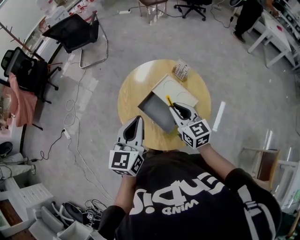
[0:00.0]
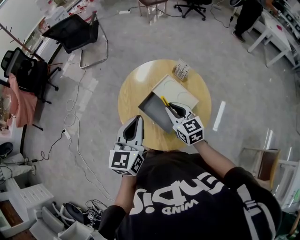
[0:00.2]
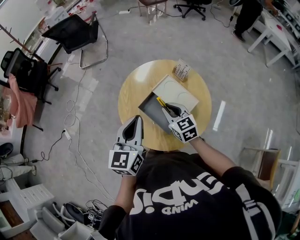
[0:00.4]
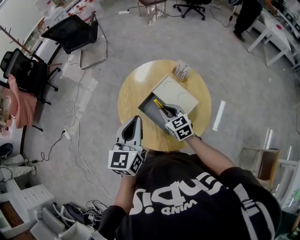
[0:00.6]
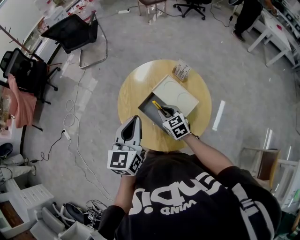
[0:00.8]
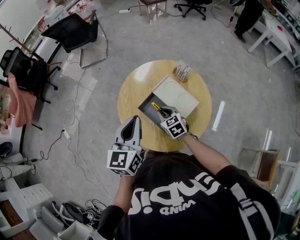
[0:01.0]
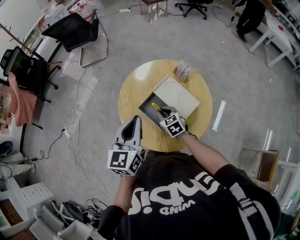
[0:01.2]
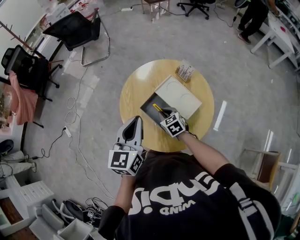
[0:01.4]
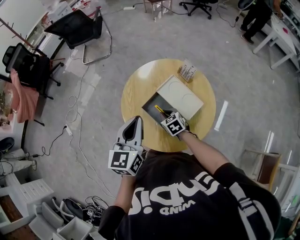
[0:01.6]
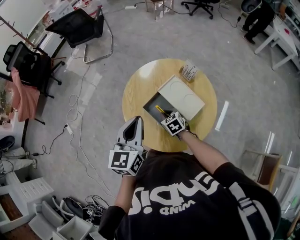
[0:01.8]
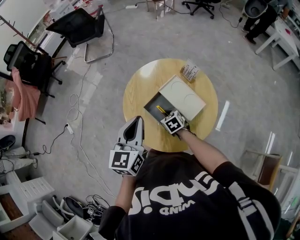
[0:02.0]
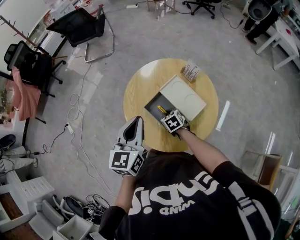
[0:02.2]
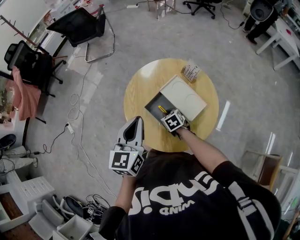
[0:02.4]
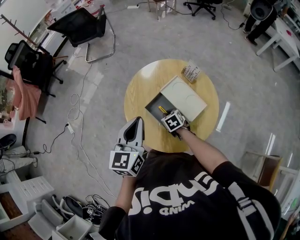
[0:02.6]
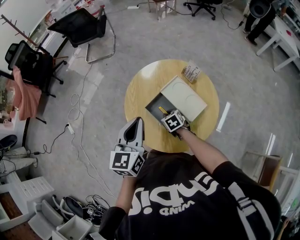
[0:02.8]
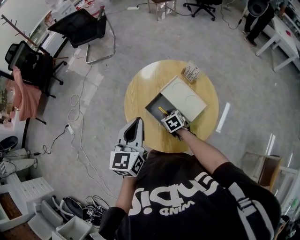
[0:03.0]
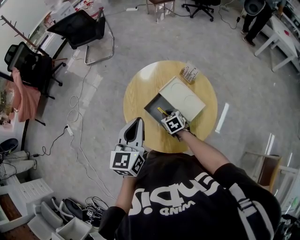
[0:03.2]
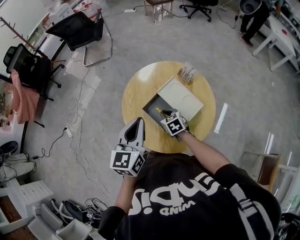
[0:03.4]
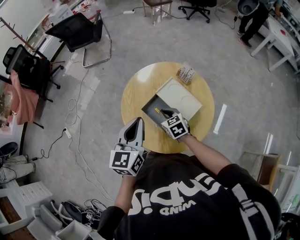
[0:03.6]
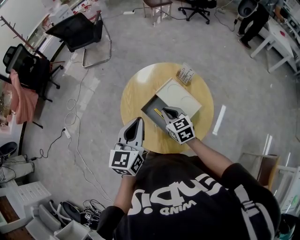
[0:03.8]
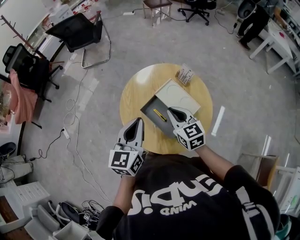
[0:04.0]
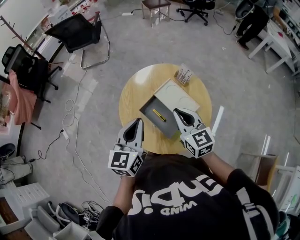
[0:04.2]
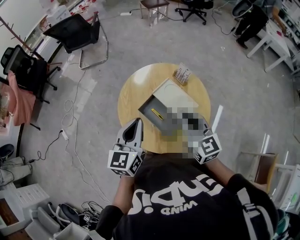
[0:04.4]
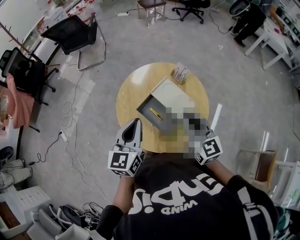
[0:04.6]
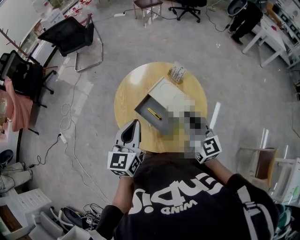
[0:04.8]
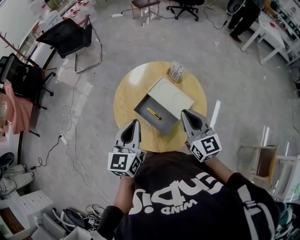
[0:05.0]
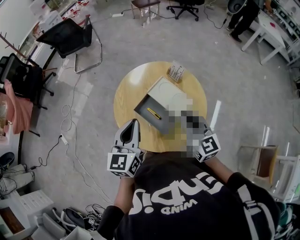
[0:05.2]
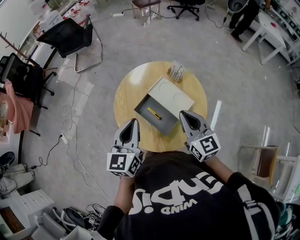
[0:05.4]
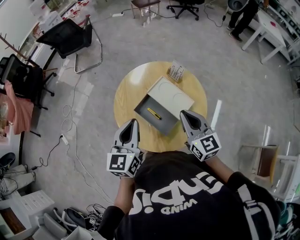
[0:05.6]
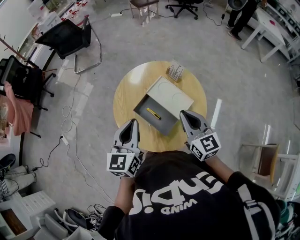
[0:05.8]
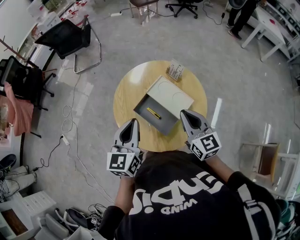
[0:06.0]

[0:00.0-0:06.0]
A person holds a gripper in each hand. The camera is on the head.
0.0 to 1.6 s: The right gripper heads downward, covering approximately 20 cm, and angles its fingers downward, by about 30 degrees.
1.6 to 3.0 s: The grippers move only a little.
3.0 to 4.4 s: The right gripper is displaced upward by about 30 cm, and points its fingers some 50 degrees further upward.
4.4 to 6.0 s: The grippers move only a little.

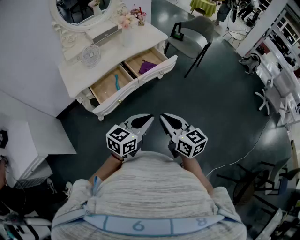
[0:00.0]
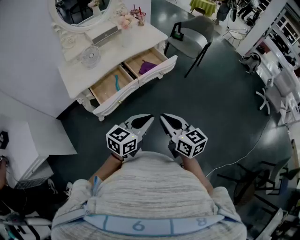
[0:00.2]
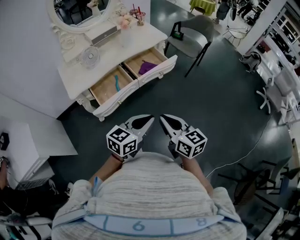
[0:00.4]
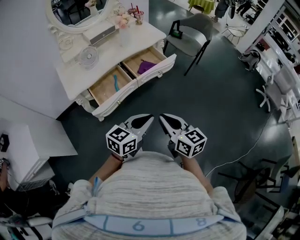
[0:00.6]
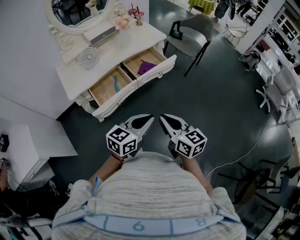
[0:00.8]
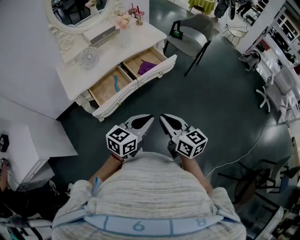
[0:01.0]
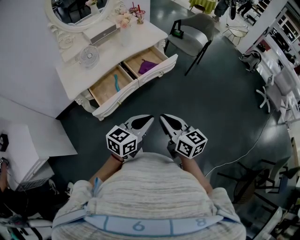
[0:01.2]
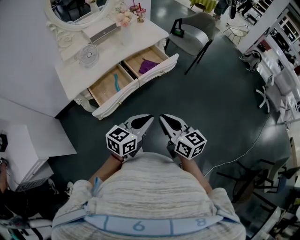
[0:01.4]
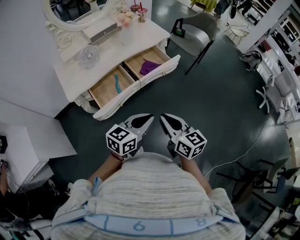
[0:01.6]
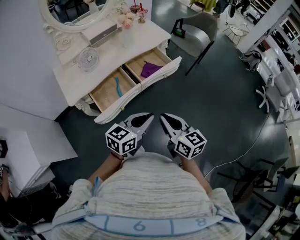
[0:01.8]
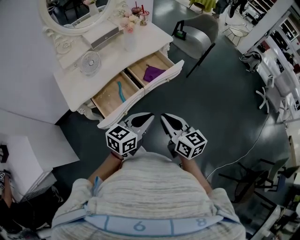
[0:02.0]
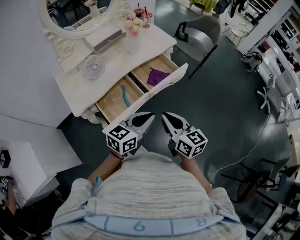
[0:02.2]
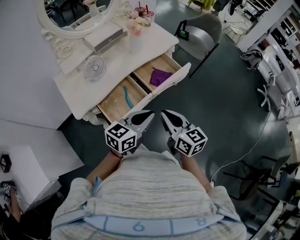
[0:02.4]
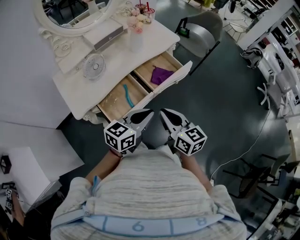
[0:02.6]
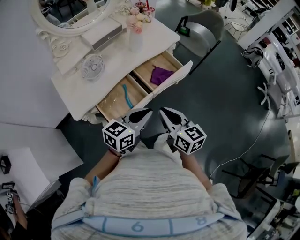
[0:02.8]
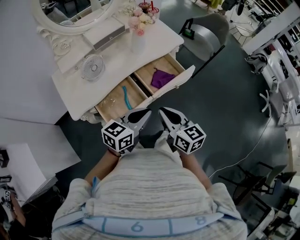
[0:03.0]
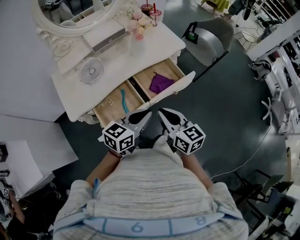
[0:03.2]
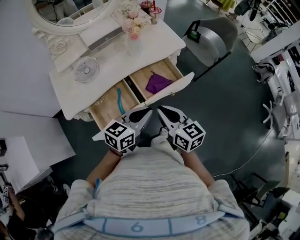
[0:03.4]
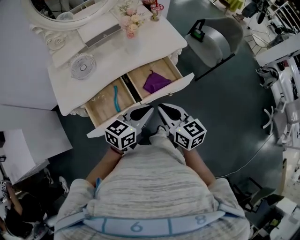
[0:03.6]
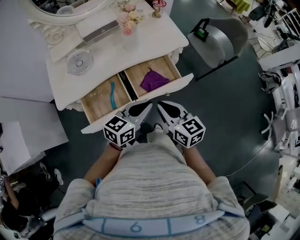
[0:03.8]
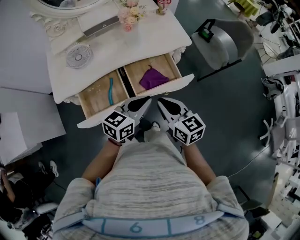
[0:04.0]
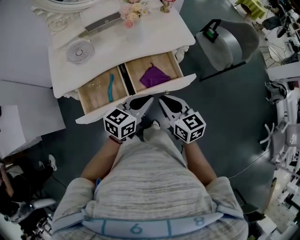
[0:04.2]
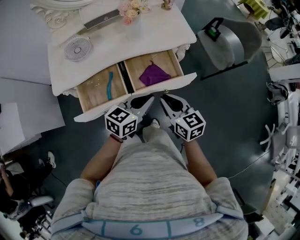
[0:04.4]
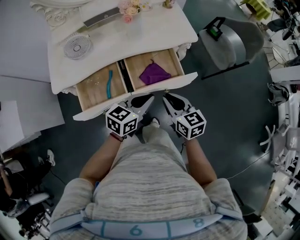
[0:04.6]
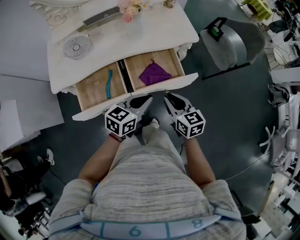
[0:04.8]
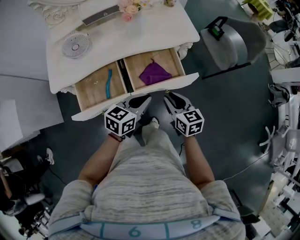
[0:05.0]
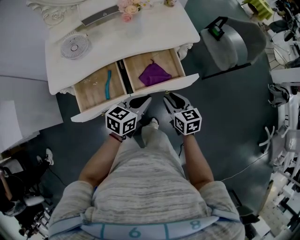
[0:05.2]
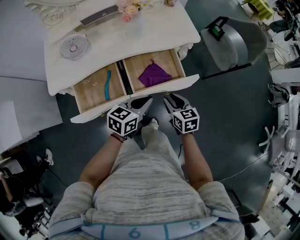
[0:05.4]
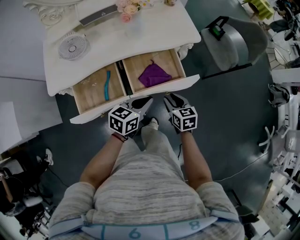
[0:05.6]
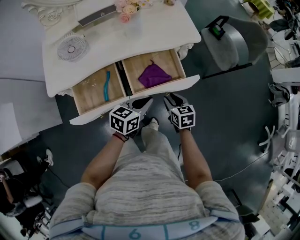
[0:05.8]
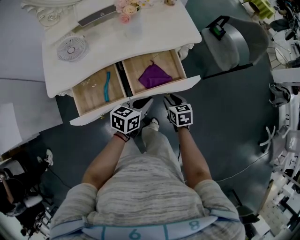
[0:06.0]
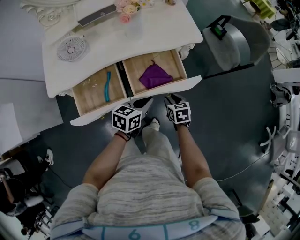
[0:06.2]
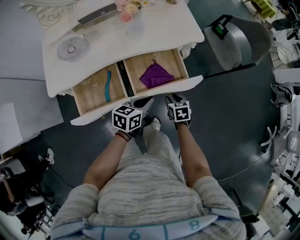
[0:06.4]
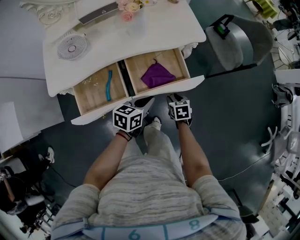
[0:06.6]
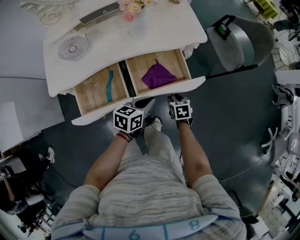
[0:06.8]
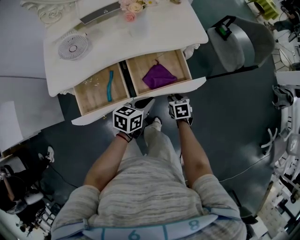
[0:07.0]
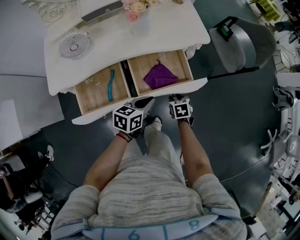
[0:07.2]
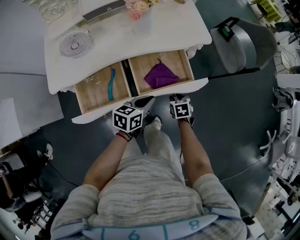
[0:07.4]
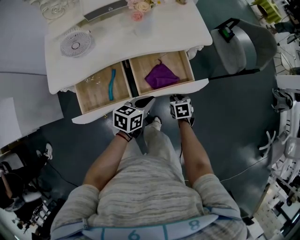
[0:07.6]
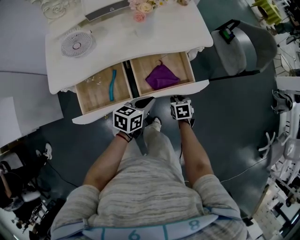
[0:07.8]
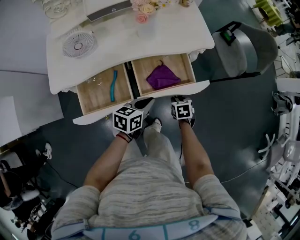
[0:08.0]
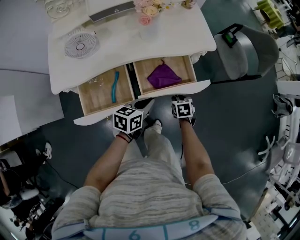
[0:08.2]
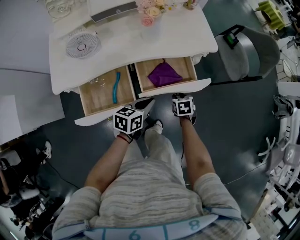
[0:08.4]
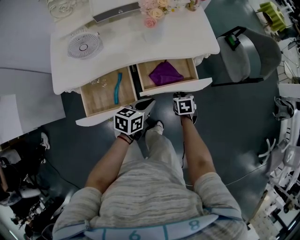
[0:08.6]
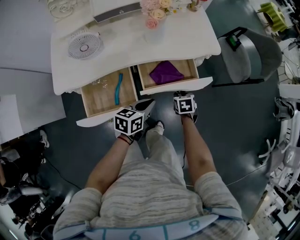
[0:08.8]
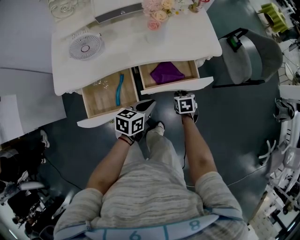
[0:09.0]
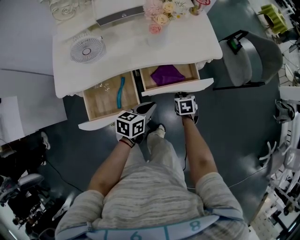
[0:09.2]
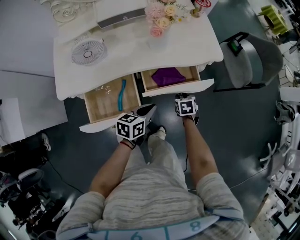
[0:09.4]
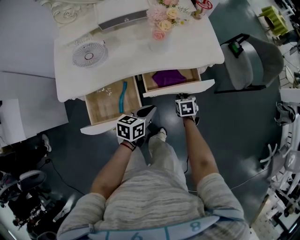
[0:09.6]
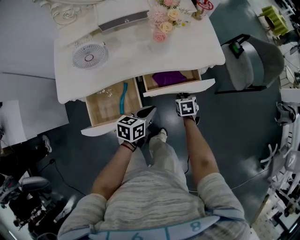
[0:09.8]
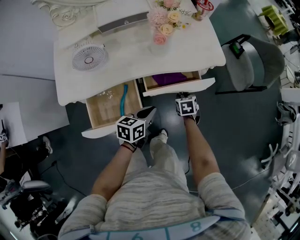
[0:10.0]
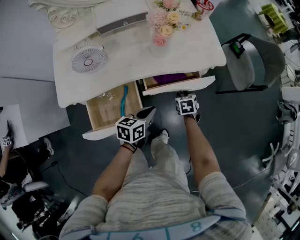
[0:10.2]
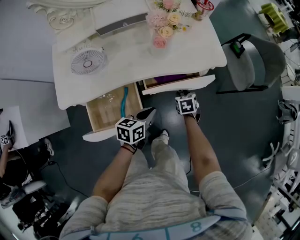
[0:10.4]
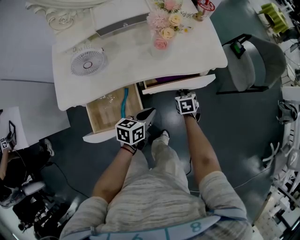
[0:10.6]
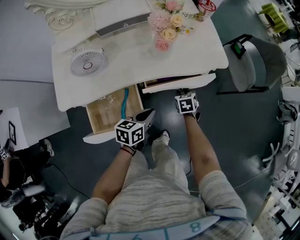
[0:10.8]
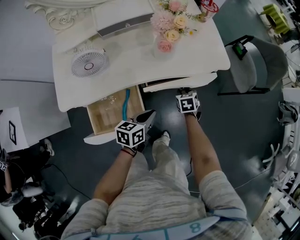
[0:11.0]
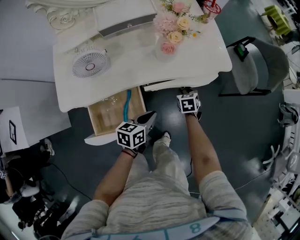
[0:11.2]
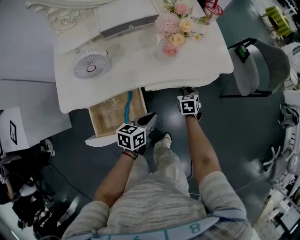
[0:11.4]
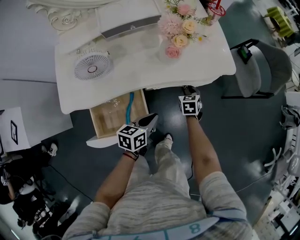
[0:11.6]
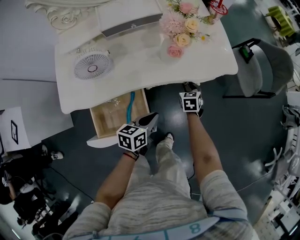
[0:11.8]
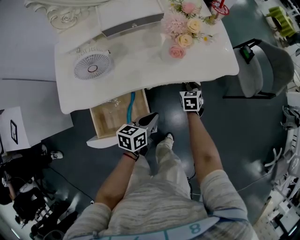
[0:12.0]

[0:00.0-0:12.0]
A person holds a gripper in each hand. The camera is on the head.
0.0 to 1.6 s: The two grippers go about 5 cm forward.
1.6 to 3.0 s: The grippers both shift forward and to the left by some 20 cm.
3.0 to 4.4 s: Both grippers travel together to the right, forward and downward, some 20 cm. The right gripper turns by some 20 degrees.
4.4 to 6.0 s: The right gripper goes roughly 20 cm downward, changes its angle by roughly 20 degrees, and opens its fingers. Meanwhile the left gripper goes about 10 cm downward.
6.0 to 7.6 s: The right gripper moves downward, about 5 cm.
7.6 to 9.0 s: The right gripper goes about 5 cm forward.
9.0 to 10.4 s: The right gripper is displaced forward by about 5 cm.
10.4 to 12.0 s: The right gripper travels forward and to the left by some 10 cm.

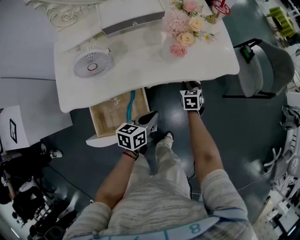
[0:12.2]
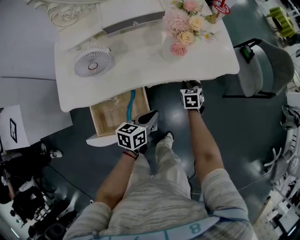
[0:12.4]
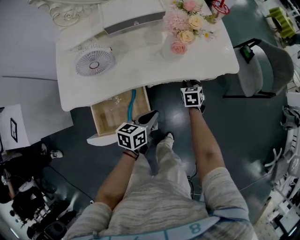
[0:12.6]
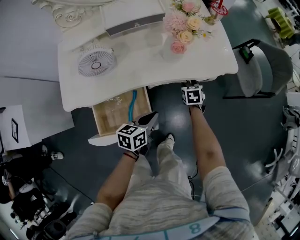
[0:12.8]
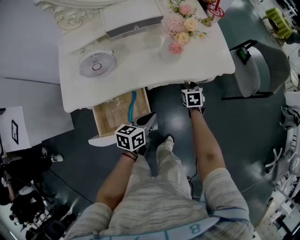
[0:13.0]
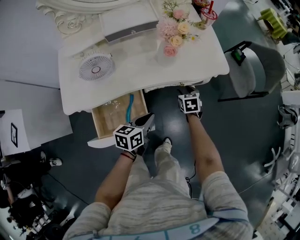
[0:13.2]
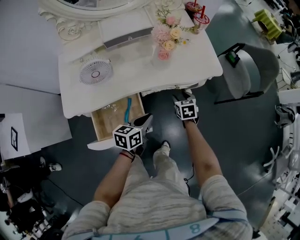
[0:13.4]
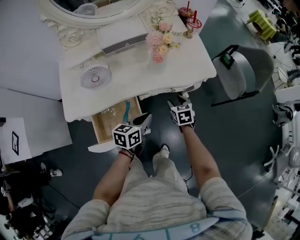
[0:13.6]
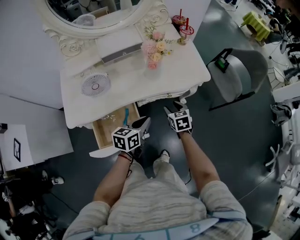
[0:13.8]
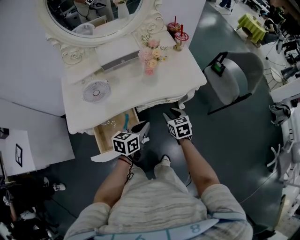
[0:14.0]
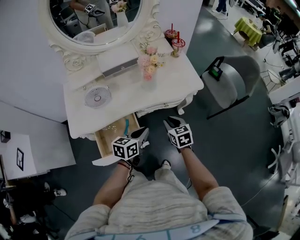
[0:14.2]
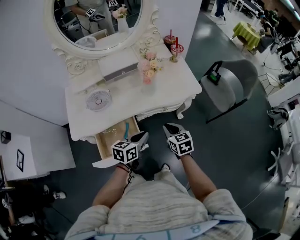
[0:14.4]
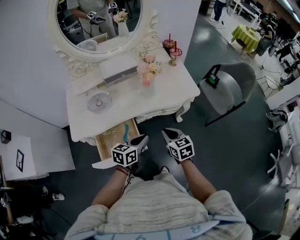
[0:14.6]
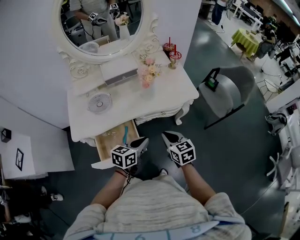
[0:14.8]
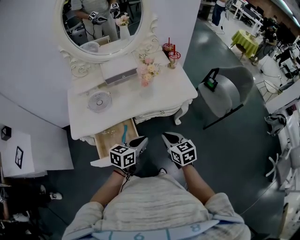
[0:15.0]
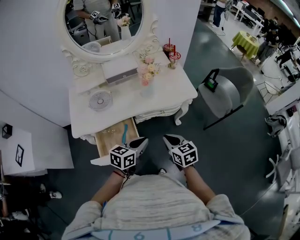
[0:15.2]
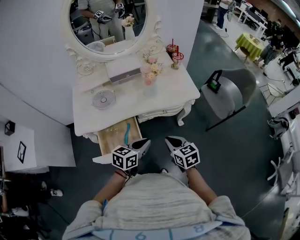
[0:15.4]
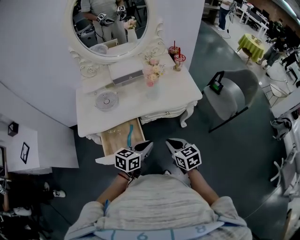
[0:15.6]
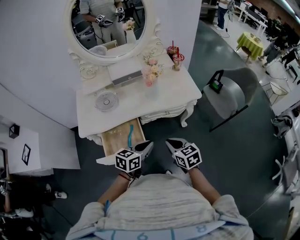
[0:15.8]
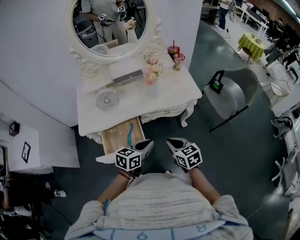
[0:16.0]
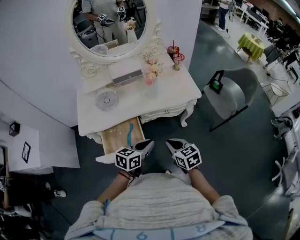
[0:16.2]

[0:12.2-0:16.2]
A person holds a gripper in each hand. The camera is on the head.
12.2 to 13.6 s: The left gripper goes about 5 cm upward; the right gripper travels upward and backward by approximately 10 cm.
13.6 to 14.8 s: The right gripper is displaced upward and backward by some 20 cm, and closes. The left gripper shifts some 10 cm upward and backward.
14.8 to 16.2 s: Both grippers move backward, approximately 5 cm.

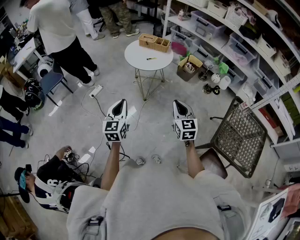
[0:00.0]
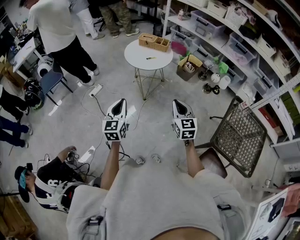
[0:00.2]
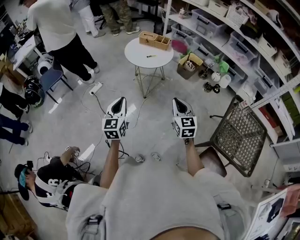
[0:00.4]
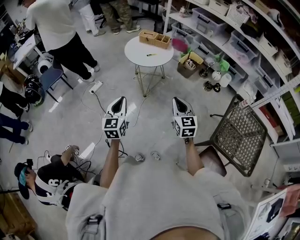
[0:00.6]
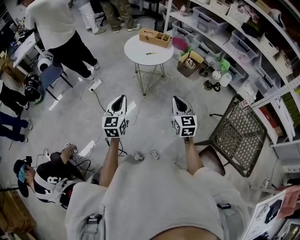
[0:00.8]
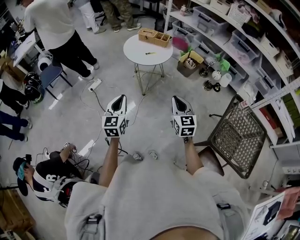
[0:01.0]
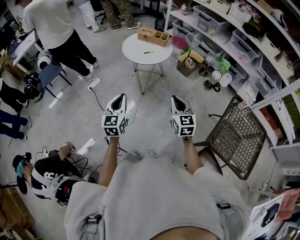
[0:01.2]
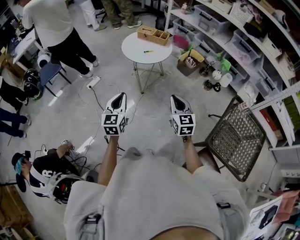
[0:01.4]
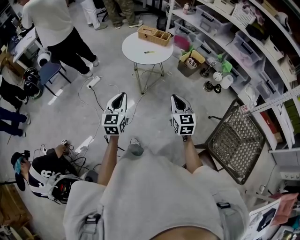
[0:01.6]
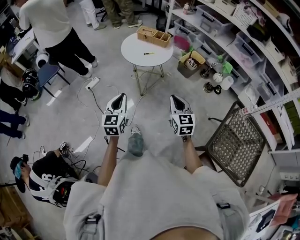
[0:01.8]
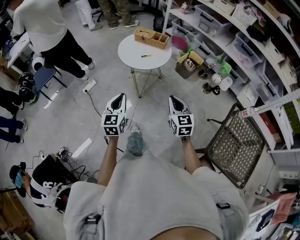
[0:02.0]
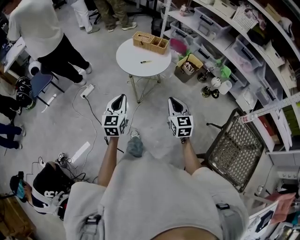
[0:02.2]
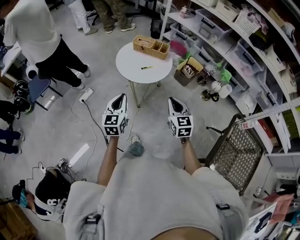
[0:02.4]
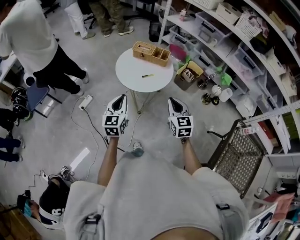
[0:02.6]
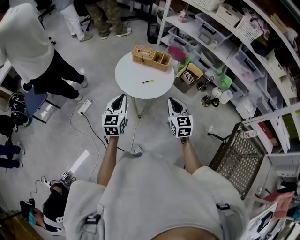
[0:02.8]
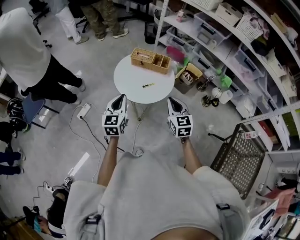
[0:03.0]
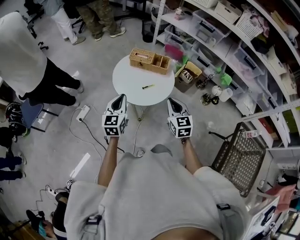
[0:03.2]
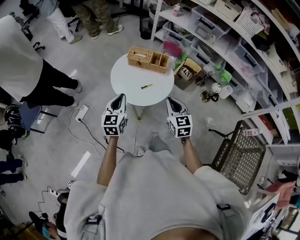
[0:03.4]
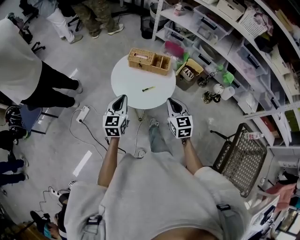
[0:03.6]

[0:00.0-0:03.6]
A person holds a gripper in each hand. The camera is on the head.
0.0 to 1.8 s: The grippers both shift forward by about 5 cm.
1.8 to 3.6 s: Both grippers move forward, roughly 35 cm.
